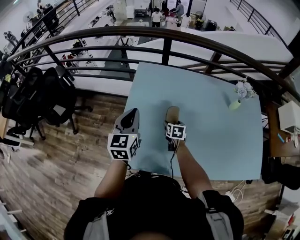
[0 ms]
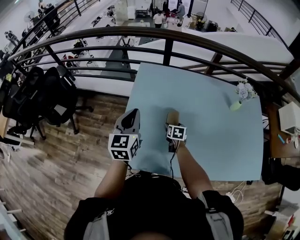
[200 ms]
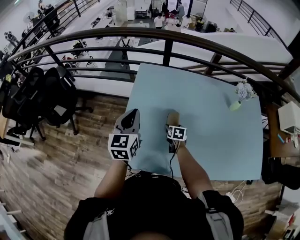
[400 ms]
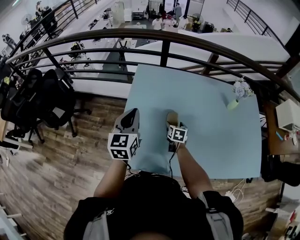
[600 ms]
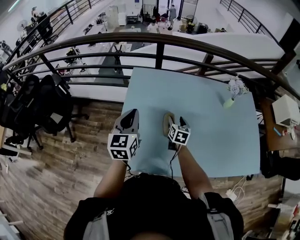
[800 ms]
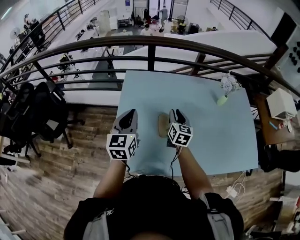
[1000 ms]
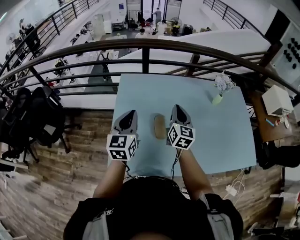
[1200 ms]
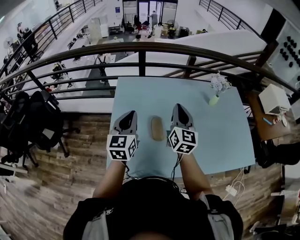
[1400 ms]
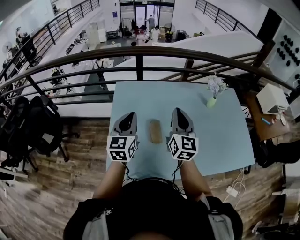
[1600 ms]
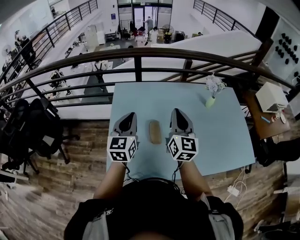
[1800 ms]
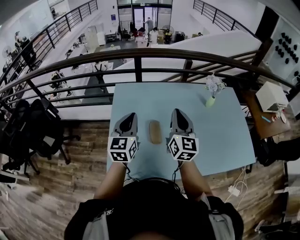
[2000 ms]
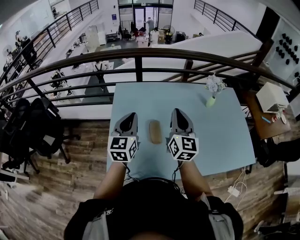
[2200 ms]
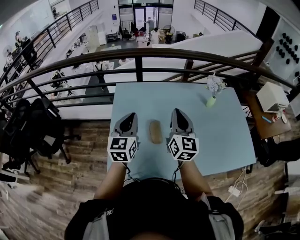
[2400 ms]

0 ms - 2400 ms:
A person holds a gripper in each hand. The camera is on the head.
0 ms - 1200 ms: The right gripper heads upward, covering about 25 cm, tips its fingers upward by about 40 degrees, and closes. The left gripper changes place by approximately 5 cm.
1200 ms - 2400 ms: The right gripper shifts some 10 cm upward and backward.

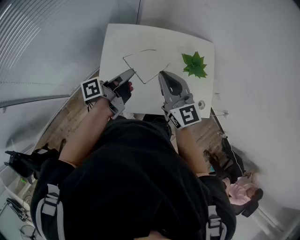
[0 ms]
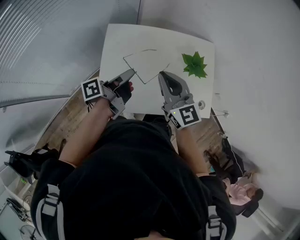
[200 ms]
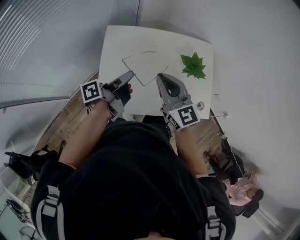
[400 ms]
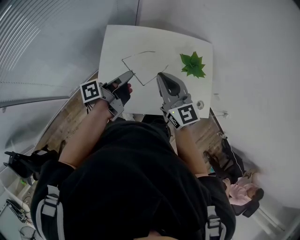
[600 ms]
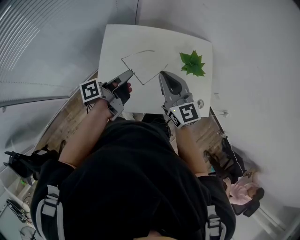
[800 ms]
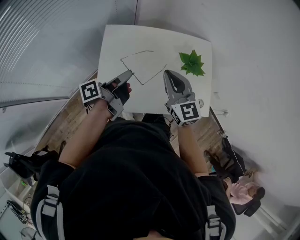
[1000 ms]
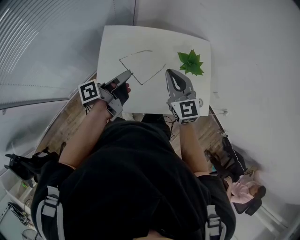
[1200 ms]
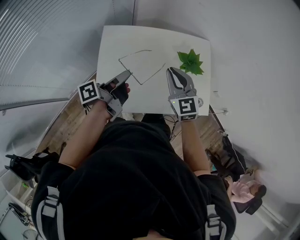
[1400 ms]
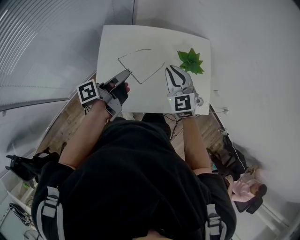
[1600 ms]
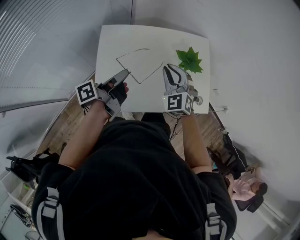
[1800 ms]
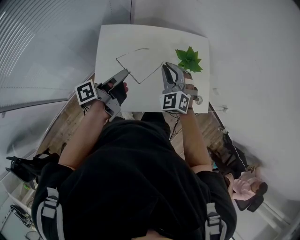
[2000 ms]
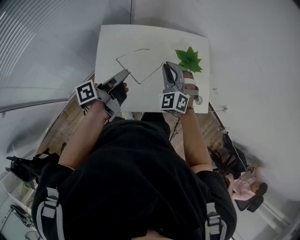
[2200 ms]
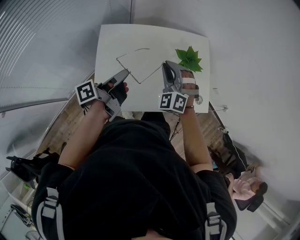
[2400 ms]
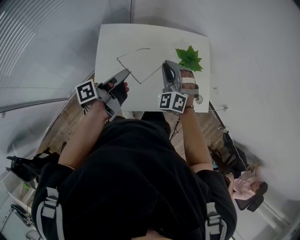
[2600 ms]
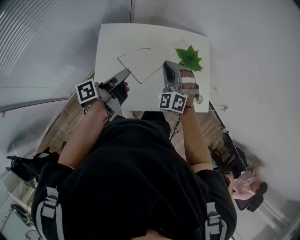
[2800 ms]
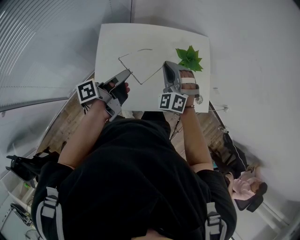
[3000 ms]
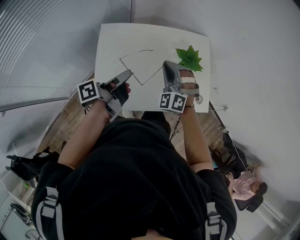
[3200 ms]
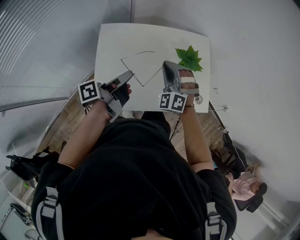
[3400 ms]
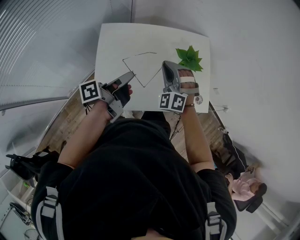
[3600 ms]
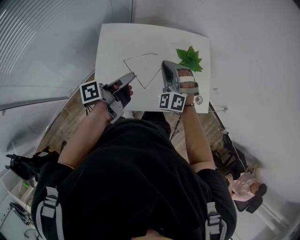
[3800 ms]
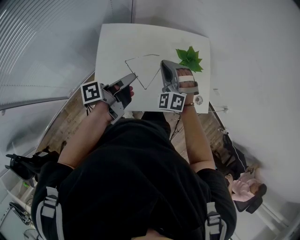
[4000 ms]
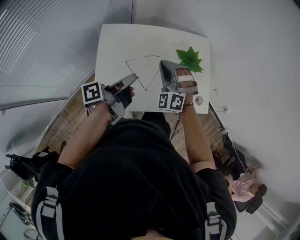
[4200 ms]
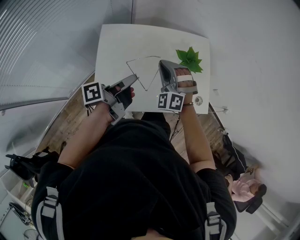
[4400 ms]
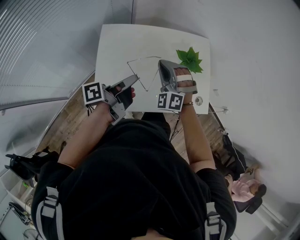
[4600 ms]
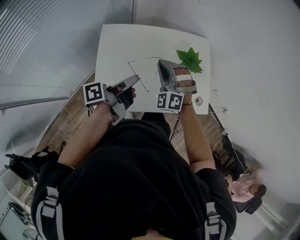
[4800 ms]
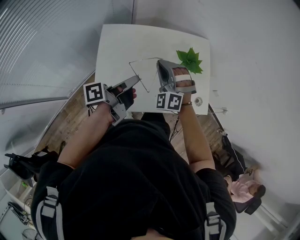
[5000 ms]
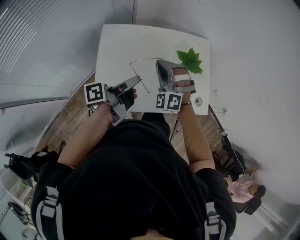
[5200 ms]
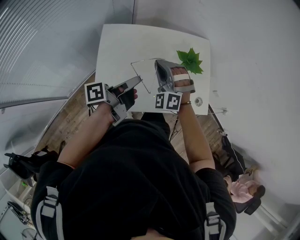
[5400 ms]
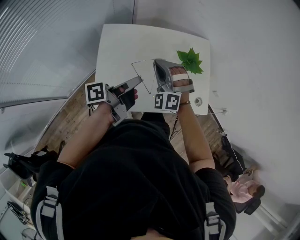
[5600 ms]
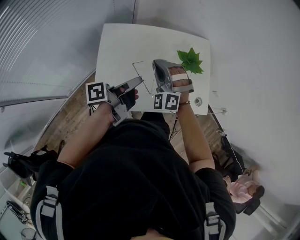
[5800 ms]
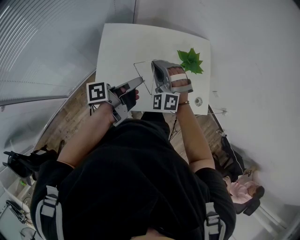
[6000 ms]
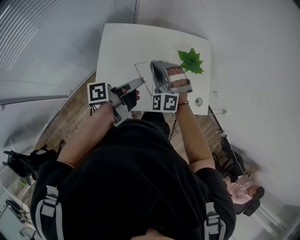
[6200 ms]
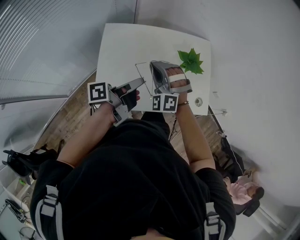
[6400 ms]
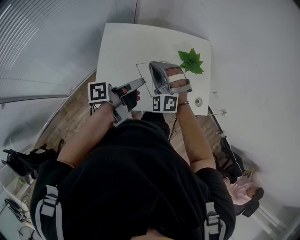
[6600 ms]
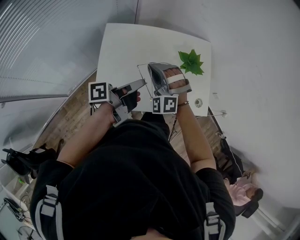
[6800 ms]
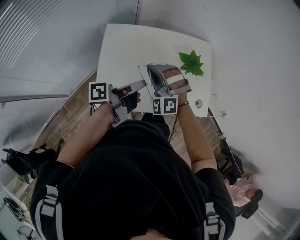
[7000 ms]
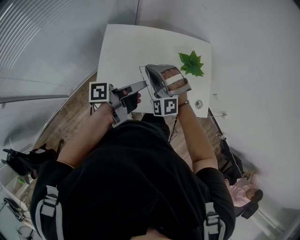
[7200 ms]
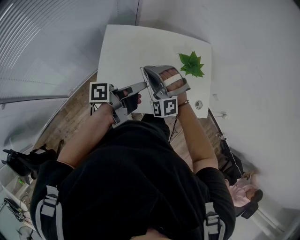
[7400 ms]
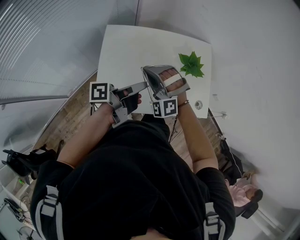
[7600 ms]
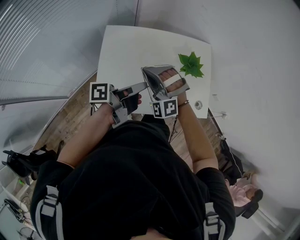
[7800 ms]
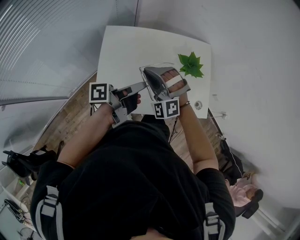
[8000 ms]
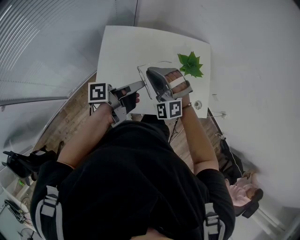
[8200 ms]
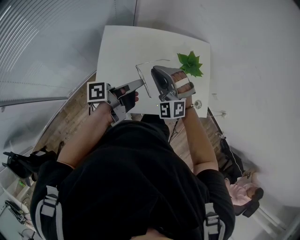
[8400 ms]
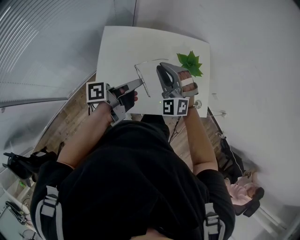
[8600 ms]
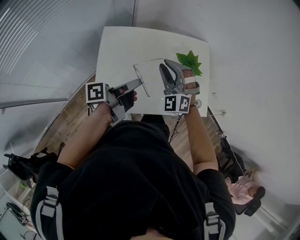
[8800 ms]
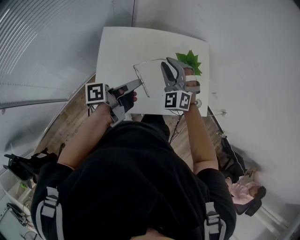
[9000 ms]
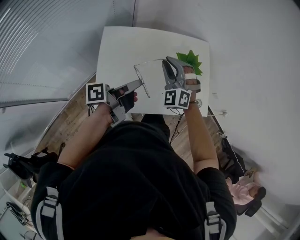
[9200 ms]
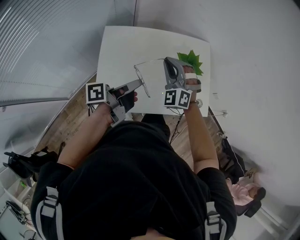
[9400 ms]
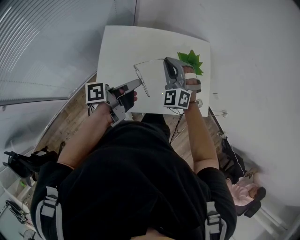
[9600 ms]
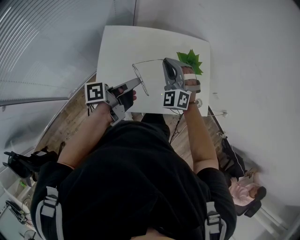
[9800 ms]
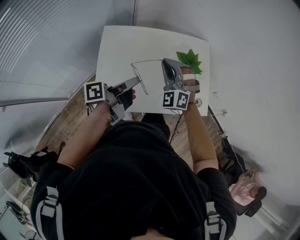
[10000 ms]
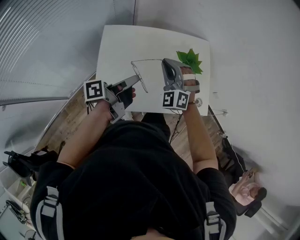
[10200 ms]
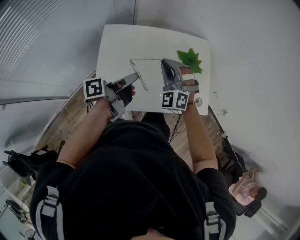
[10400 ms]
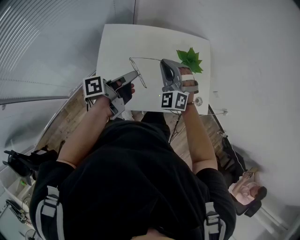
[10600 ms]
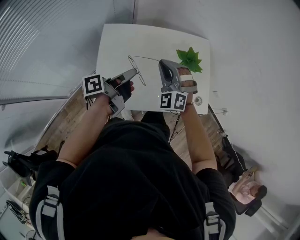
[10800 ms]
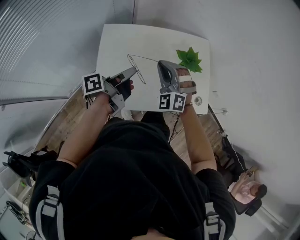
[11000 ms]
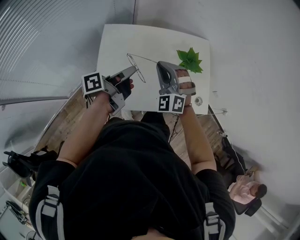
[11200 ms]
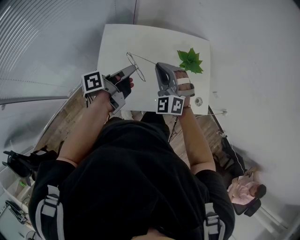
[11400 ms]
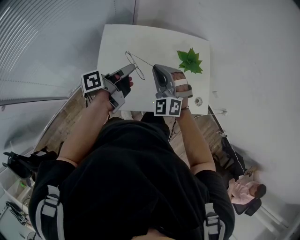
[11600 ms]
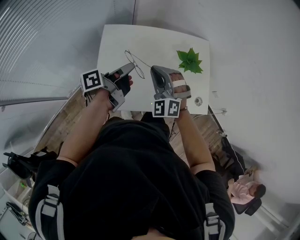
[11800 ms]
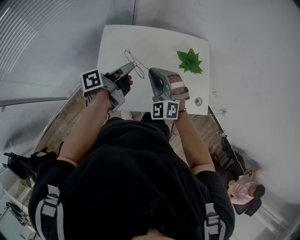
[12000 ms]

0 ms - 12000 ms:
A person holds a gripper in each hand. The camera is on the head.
0 ms - 1600 ms: The right gripper ends up some 10 cm from where it was, and turns by about 30 degrees.
1600 ms - 3000 ms: The right gripper changes its angle by some 40 degrees.
7600 ms - 9000 ms: The right gripper moves about 10 cm, turns by approximately 20 degrees, and opens.
9000 ms - 10400 ms: The right gripper closes.
10400 ms - 12000 ms: The right gripper changes place by roughly 5 cm.

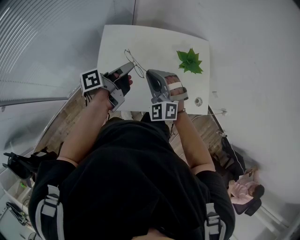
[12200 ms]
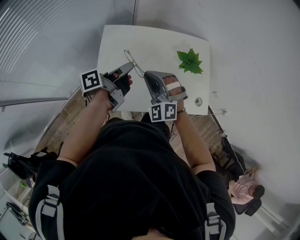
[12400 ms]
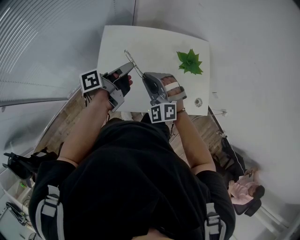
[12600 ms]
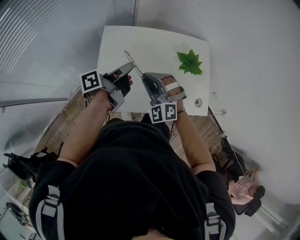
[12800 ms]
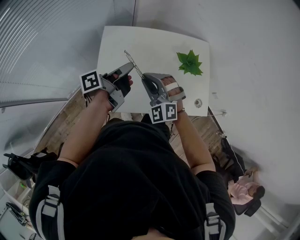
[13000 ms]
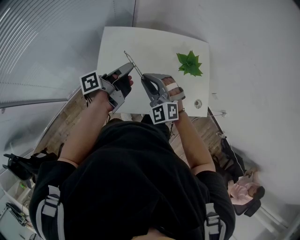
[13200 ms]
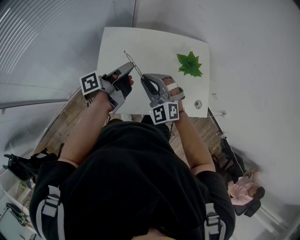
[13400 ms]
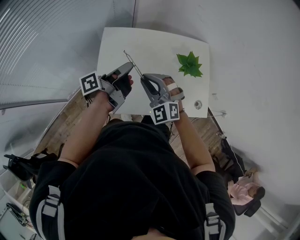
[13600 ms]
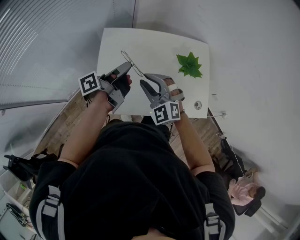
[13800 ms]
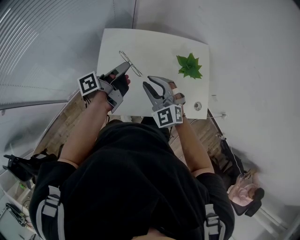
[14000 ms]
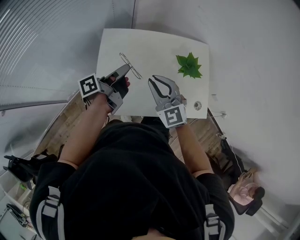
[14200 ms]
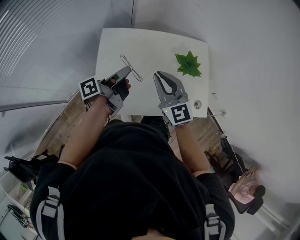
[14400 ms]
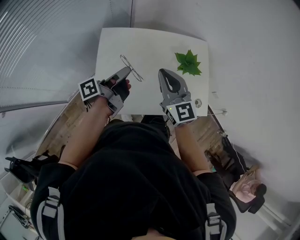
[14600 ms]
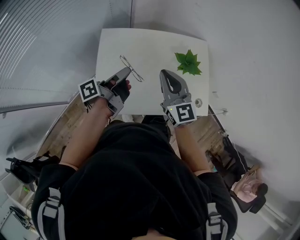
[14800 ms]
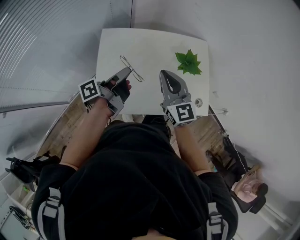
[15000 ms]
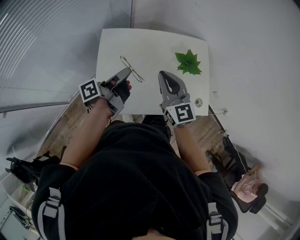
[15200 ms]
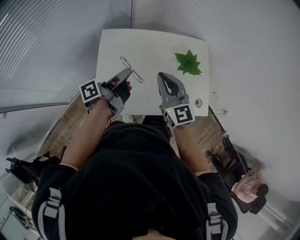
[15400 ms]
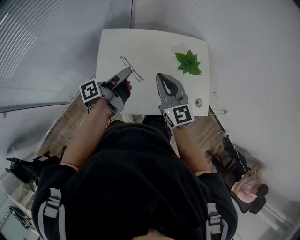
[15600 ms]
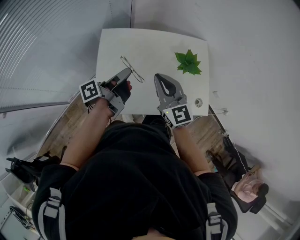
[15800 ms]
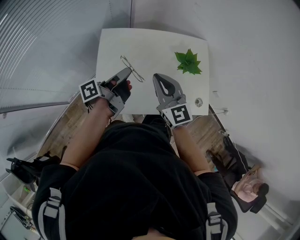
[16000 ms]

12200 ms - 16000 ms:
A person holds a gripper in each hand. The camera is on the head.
13400 ms - 14800 ms: The right gripper moves about 10 cm, and twists about 40 degrees clockwise, seen from behind.

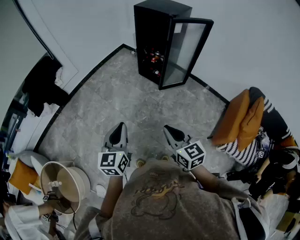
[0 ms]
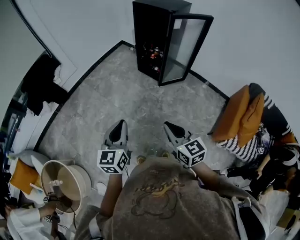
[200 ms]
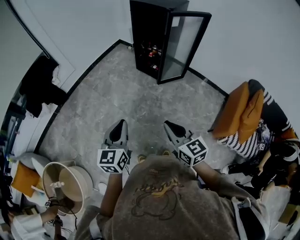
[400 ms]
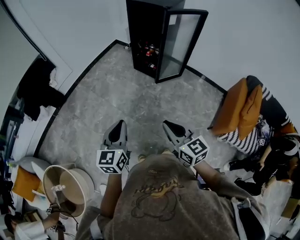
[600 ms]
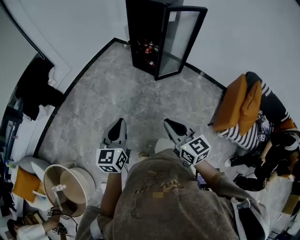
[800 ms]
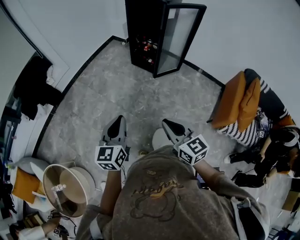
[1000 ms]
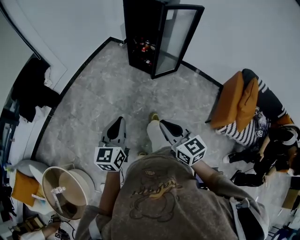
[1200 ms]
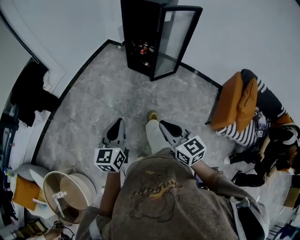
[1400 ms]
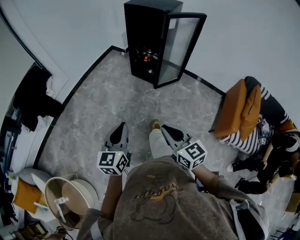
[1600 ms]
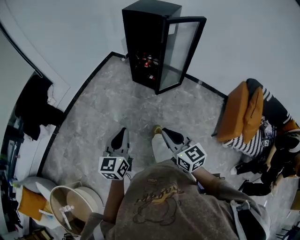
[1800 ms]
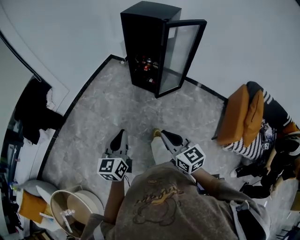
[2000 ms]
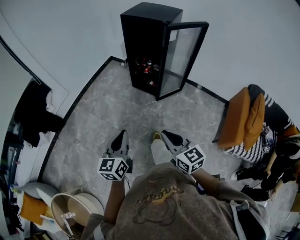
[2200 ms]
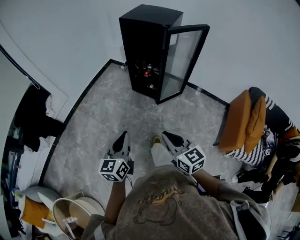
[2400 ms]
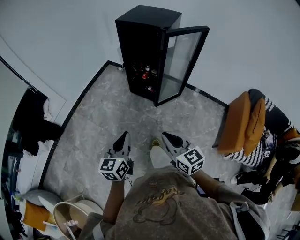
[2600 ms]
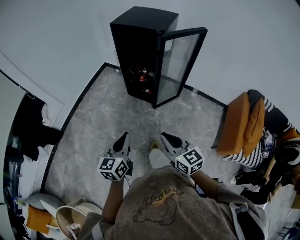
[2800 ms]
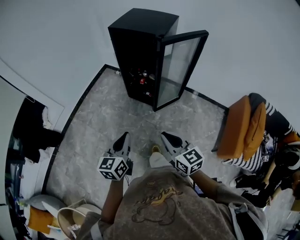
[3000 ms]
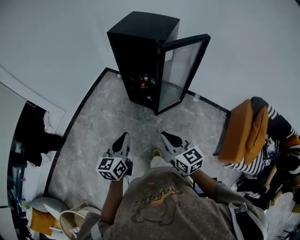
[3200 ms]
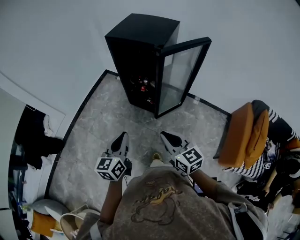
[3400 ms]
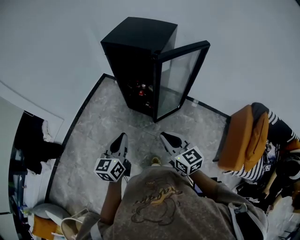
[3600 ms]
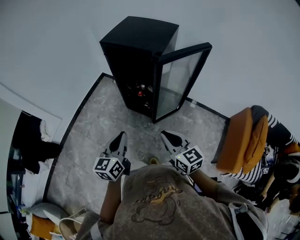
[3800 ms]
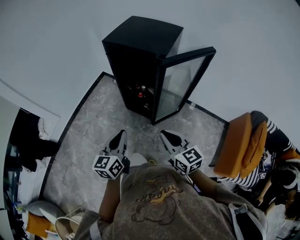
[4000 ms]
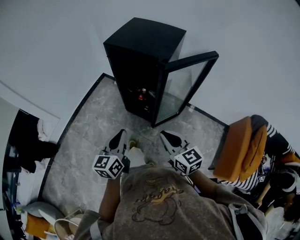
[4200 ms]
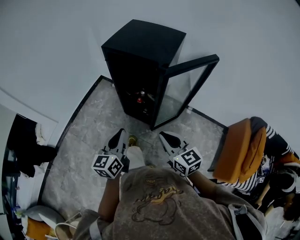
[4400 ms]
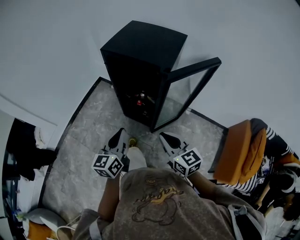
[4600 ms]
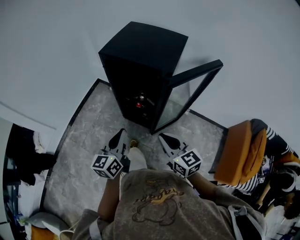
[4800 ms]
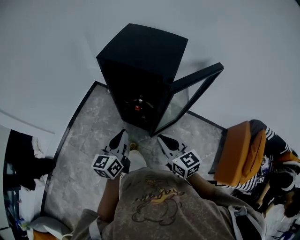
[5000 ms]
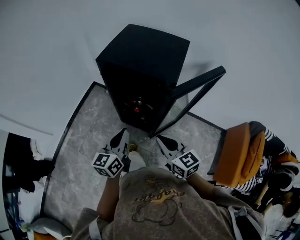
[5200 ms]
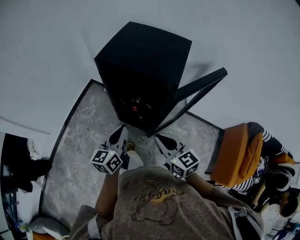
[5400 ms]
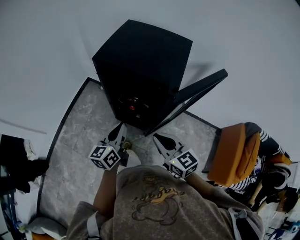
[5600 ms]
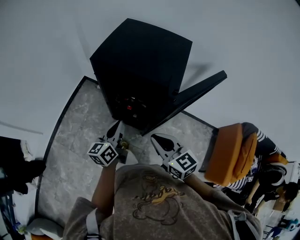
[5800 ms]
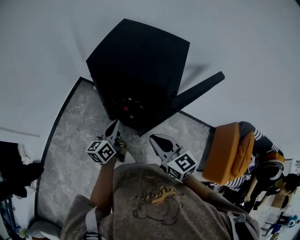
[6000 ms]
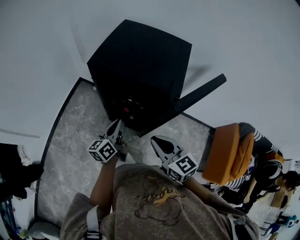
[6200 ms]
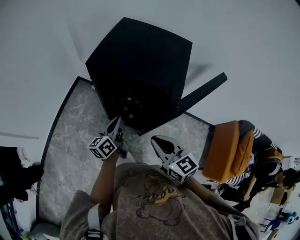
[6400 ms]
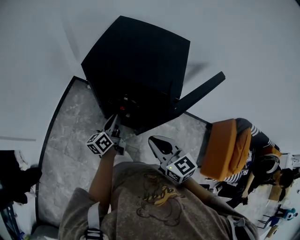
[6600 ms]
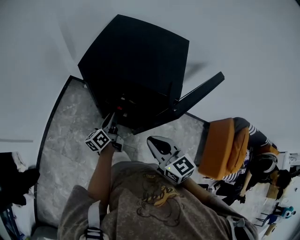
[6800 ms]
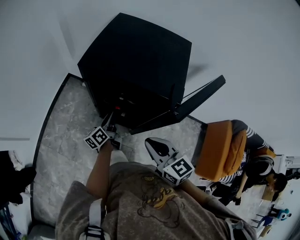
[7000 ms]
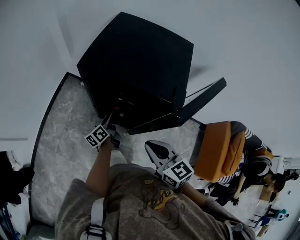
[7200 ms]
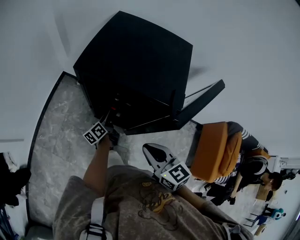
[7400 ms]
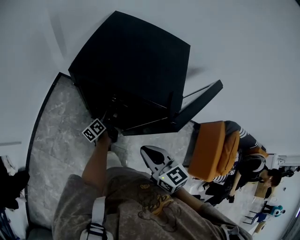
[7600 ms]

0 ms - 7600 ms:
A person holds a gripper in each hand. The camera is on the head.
0 ms - 1600 ms: The left gripper moves forward, approximately 5 cm. The right gripper goes some 5 cm to the left.
1600 ms - 3000 ms: The grippers both shift forward by approximately 25 cm.
3000 ms - 4600 ms: The grippers both shift forward by approximately 25 cm.
4600 ms - 6000 ms: The left gripper moves forward, some 20 cm, and swivels roughly 20 degrees. Meanwhile the right gripper is displaced forward by roughly 10 cm.
6000 ms - 7600 ms: The left gripper shifts roughly 25 cm downward and forward, changes its angle by approximately 30 degrees, and opens its fingers.
